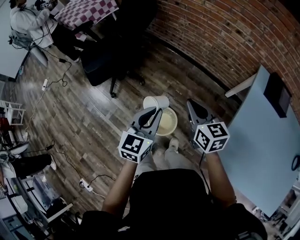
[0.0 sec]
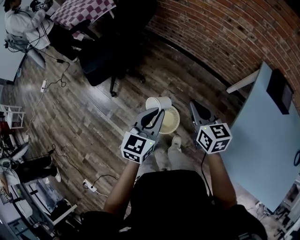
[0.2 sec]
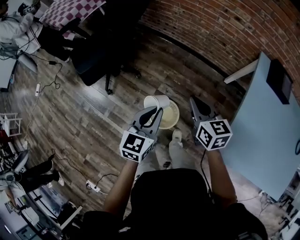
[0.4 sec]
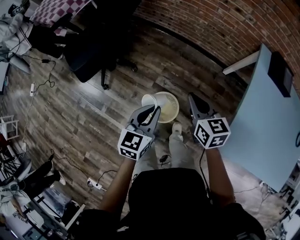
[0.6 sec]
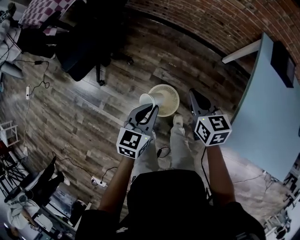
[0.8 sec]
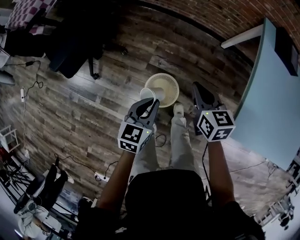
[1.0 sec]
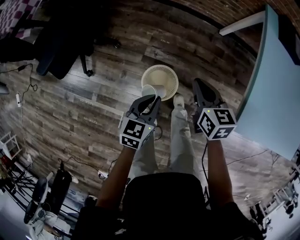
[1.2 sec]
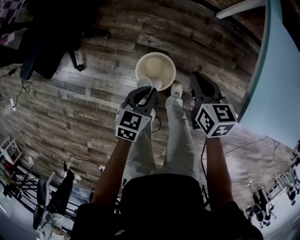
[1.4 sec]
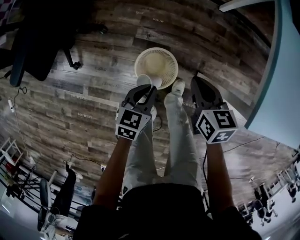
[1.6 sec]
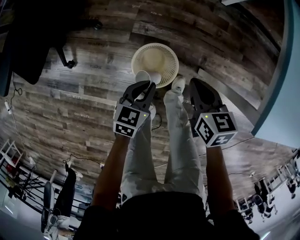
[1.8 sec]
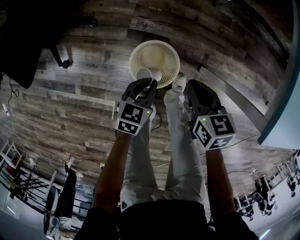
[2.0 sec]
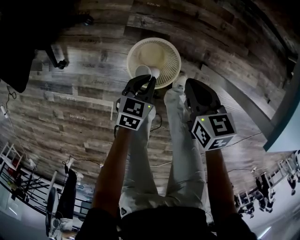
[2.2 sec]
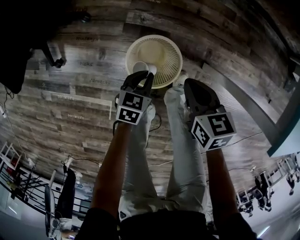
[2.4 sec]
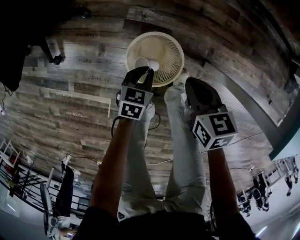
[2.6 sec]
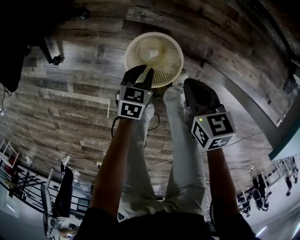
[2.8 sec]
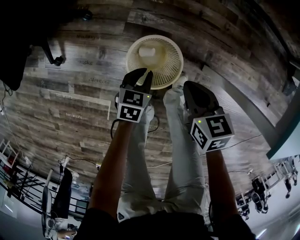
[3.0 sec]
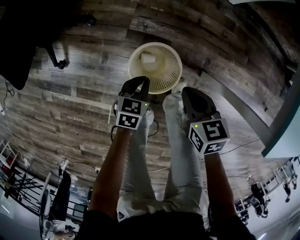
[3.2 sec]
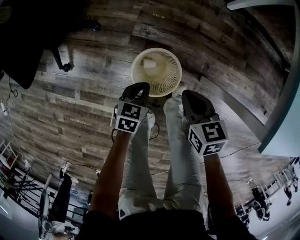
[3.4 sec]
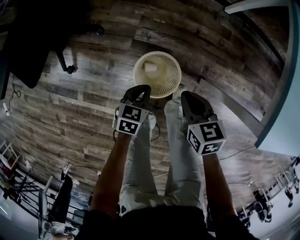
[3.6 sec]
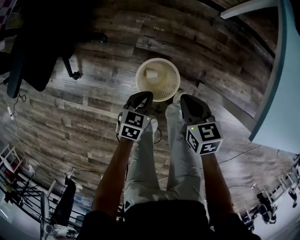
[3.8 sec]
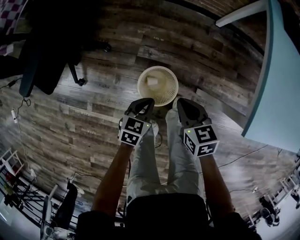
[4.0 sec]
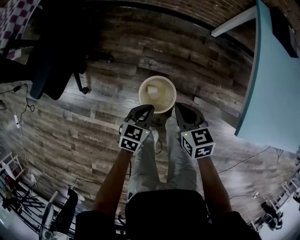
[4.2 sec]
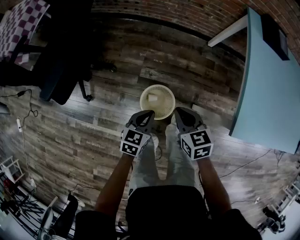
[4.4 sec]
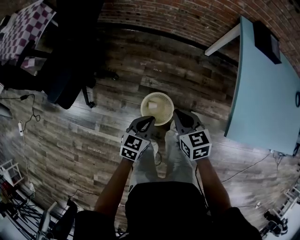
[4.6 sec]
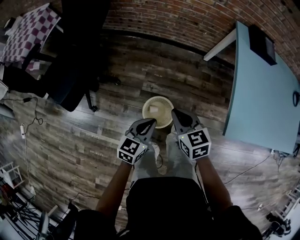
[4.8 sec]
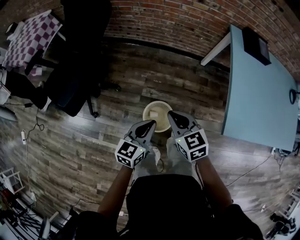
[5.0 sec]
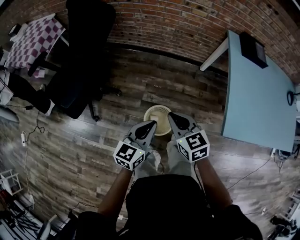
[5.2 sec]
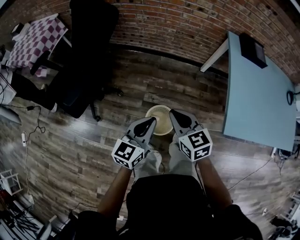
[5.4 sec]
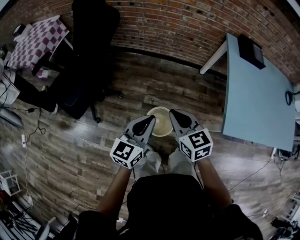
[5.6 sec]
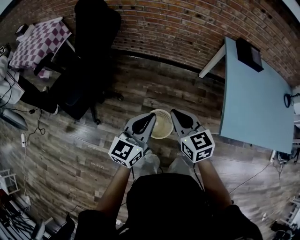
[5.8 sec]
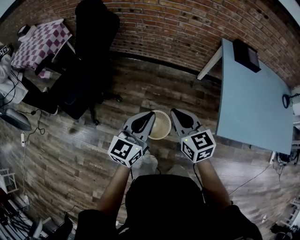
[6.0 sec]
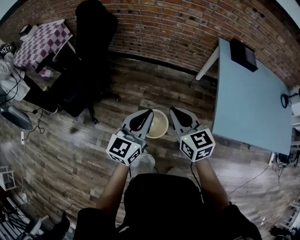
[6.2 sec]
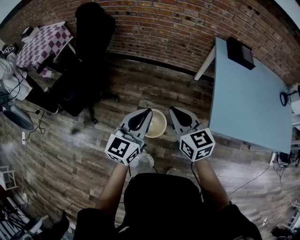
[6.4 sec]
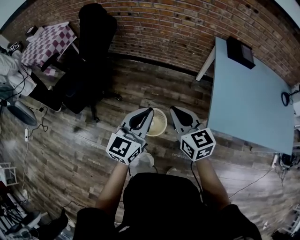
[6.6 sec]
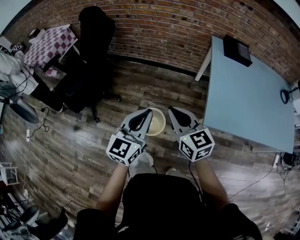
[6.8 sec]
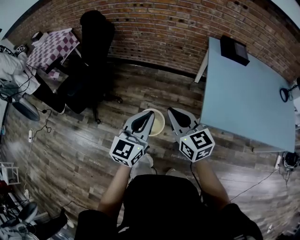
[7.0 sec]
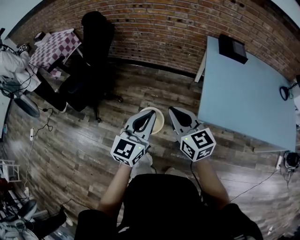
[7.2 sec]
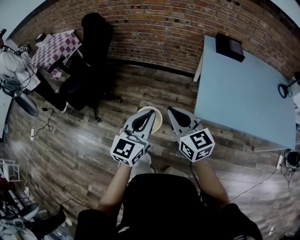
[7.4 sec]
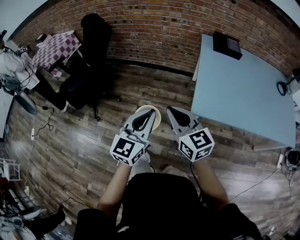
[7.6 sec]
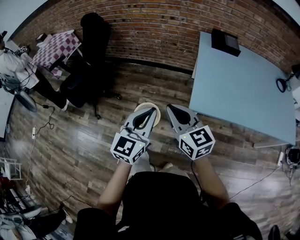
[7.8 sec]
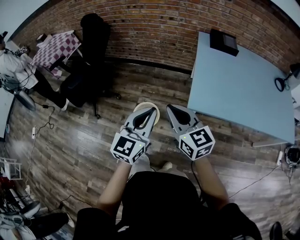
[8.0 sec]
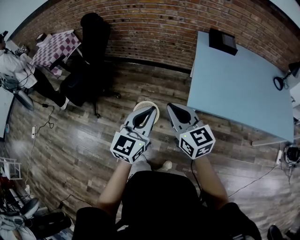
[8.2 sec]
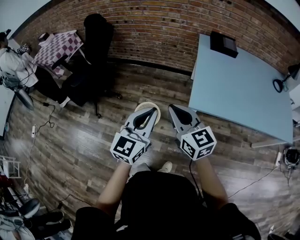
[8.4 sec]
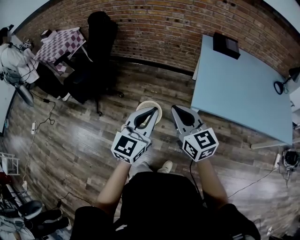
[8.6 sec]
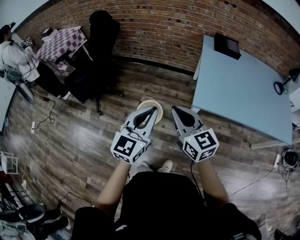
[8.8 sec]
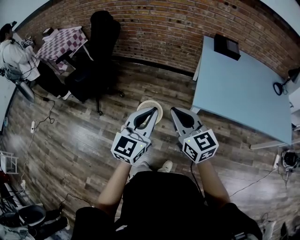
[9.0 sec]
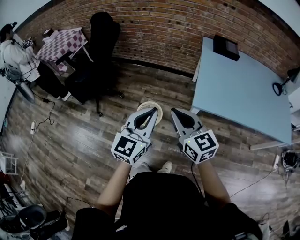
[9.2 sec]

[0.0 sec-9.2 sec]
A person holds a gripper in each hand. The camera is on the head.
0.0 sec to 1.6 sec: Both grippers move downward, approximately 35 cm. The left gripper swivels approximately 40 degrees; the right gripper turns by some 40 degrees.
1.6 sec to 3.0 sec: Both grippers travel together downward, about 20 cm.
3.0 sec to 4.6 sec: The grippers both shift upward by approximately 35 cm.
4.6 sec to 6.2 sec: The two grippers go some 25 cm upward. The left gripper points its fingers some 30 degrees further upward; the right gripper turns by some 20 degrees.
6.2 sec to 7.6 sec: The left gripper travels to the right and backward by approximately 25 cm, while the right gripper travels backward and to the right by approximately 20 cm.
7.6 sec to 9.2 sec: The grippers both shift backward by about 10 cm.

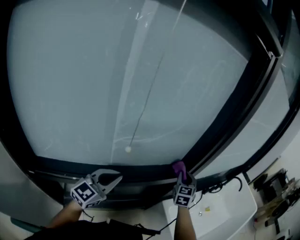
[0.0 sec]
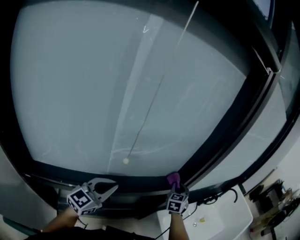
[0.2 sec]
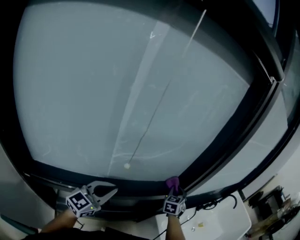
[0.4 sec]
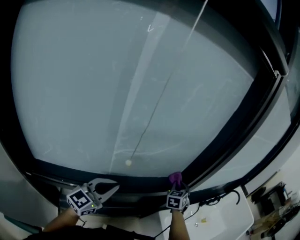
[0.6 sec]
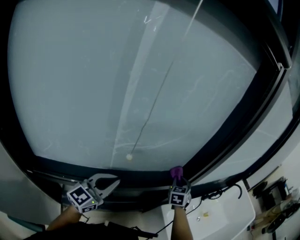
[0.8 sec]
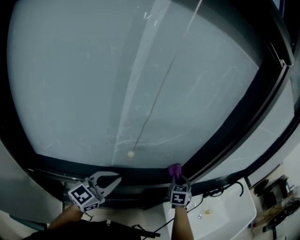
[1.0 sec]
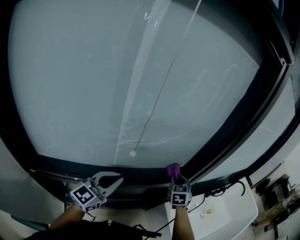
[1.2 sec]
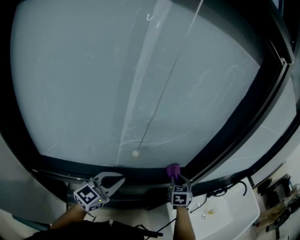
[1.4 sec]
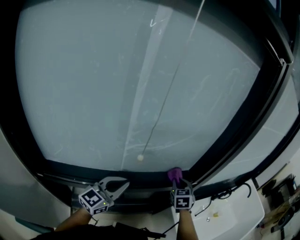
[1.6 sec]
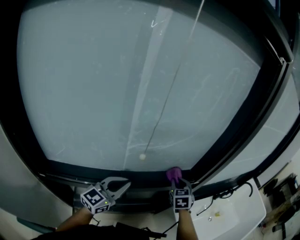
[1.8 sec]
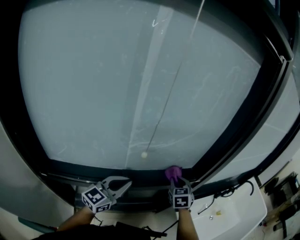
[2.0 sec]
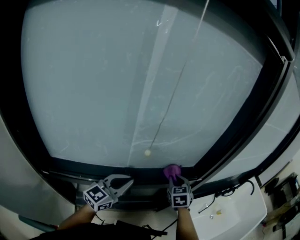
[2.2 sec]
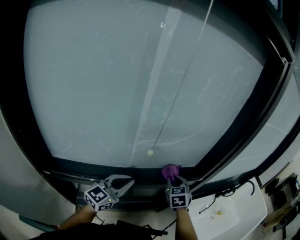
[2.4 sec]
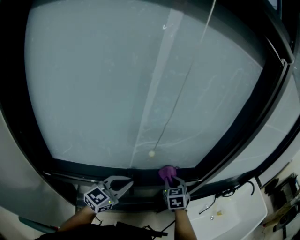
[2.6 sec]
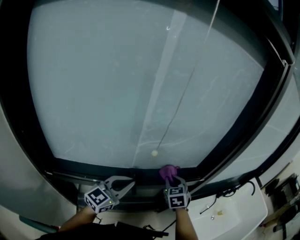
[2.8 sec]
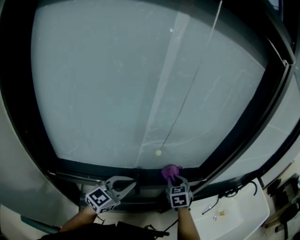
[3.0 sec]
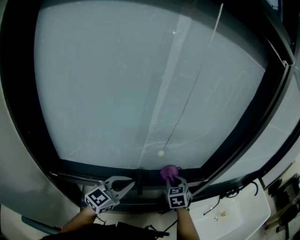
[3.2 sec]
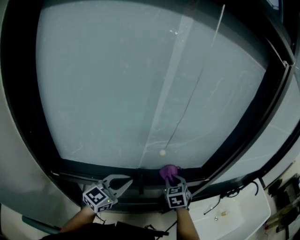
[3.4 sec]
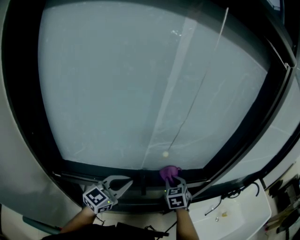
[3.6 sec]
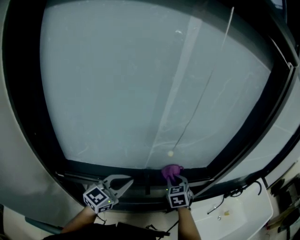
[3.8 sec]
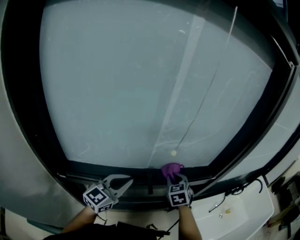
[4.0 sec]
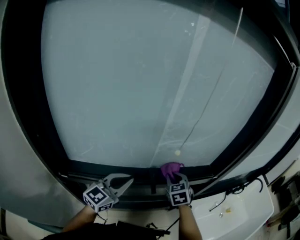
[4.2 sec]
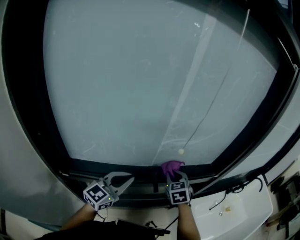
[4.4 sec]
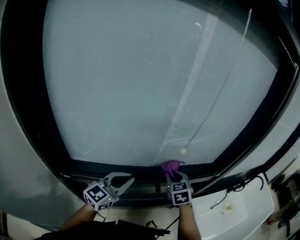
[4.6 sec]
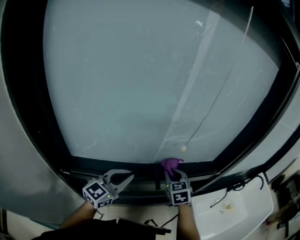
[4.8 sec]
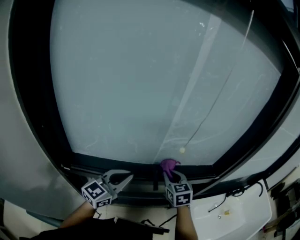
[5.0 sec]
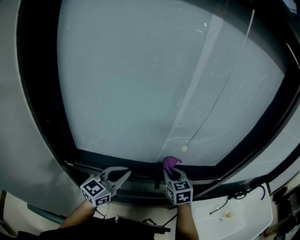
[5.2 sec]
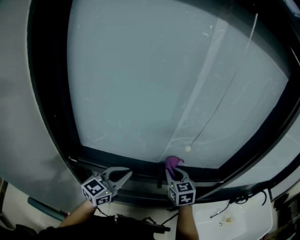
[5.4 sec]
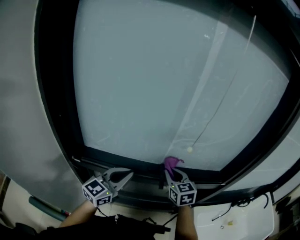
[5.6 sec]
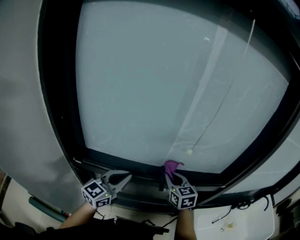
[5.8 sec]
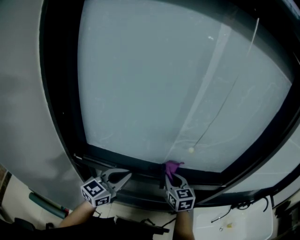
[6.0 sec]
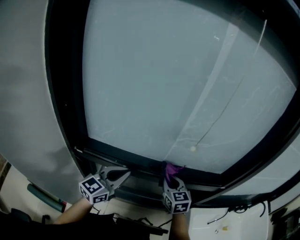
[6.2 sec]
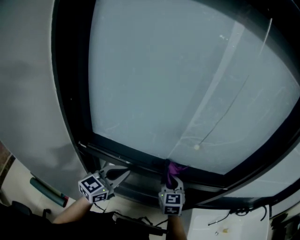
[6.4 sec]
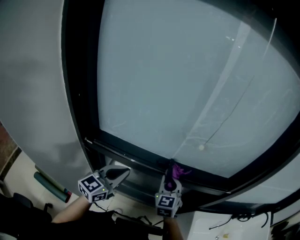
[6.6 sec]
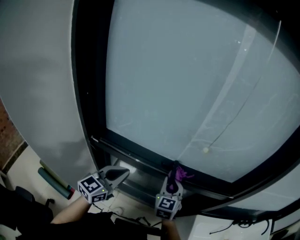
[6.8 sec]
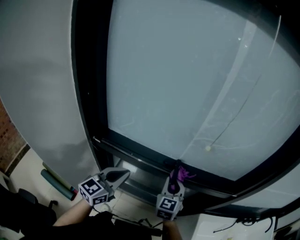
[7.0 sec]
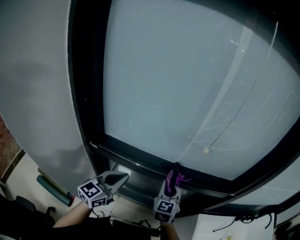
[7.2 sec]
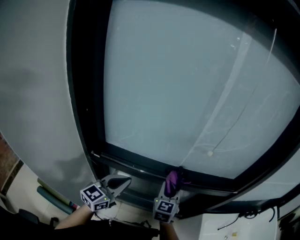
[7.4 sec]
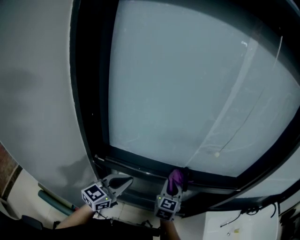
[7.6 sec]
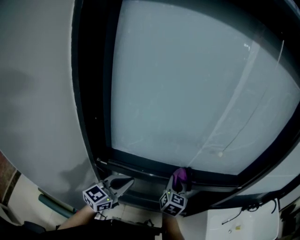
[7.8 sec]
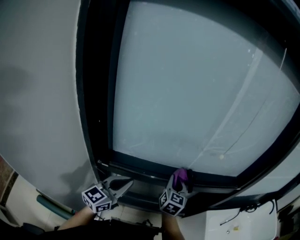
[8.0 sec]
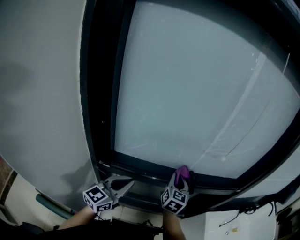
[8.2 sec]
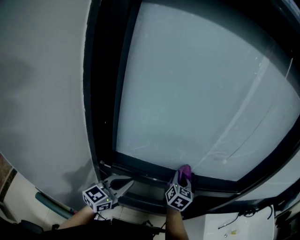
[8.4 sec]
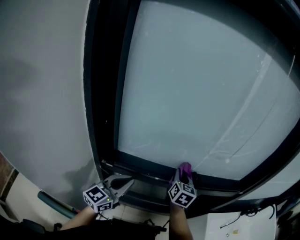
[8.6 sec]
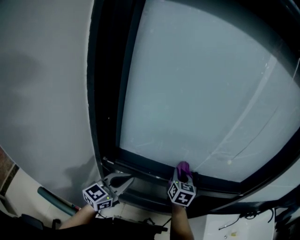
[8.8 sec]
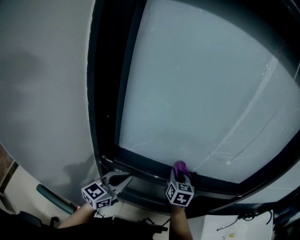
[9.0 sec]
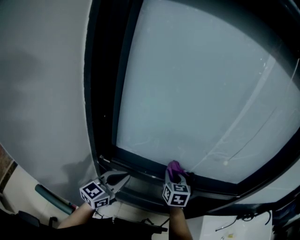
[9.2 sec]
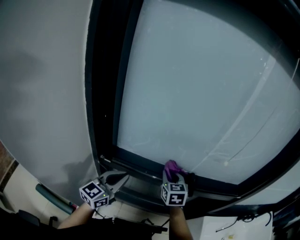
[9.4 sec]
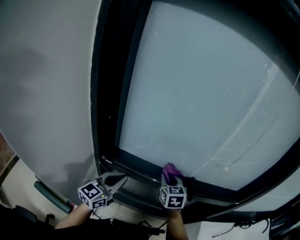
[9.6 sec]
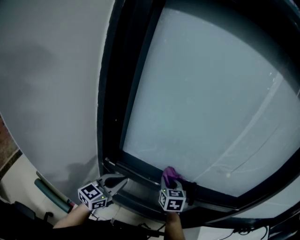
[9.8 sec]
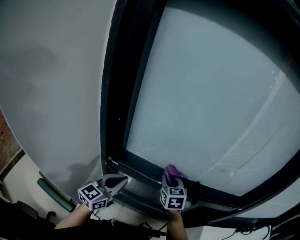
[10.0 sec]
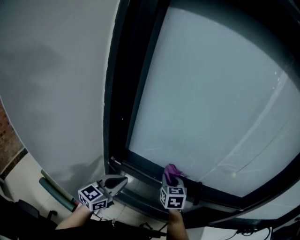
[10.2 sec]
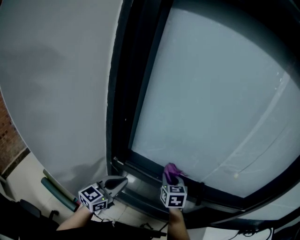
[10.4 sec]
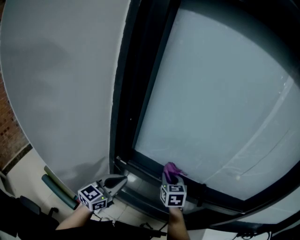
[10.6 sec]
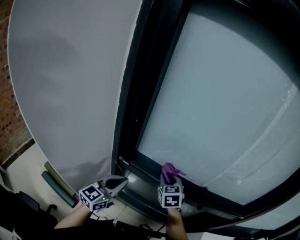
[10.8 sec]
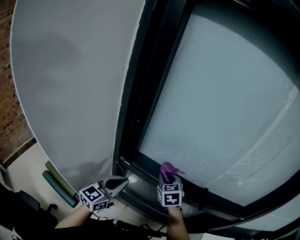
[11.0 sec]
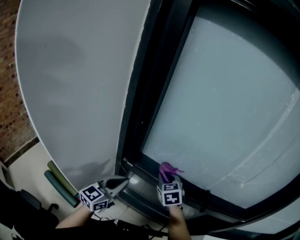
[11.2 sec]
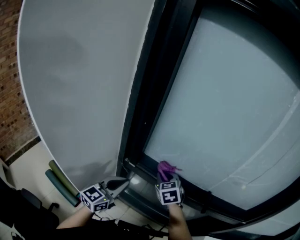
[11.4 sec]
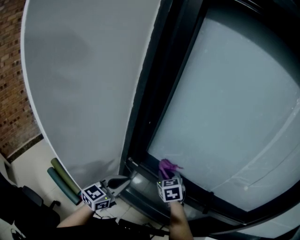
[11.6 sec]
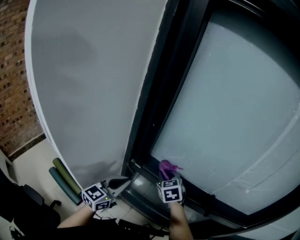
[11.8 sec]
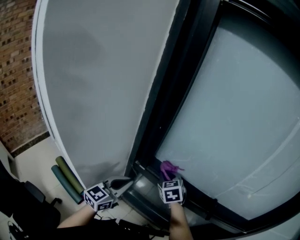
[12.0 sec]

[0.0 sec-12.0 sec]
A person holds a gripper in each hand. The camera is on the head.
0.0 sec to 1.6 sec: The right gripper is displaced to the left, downward and backward by approximately 10 cm, and changes its angle by roughly 20 degrees.
1.6 sec to 3.0 sec: The right gripper goes roughly 10 cm to the left and backward.
3.0 sec to 4.4 sec: Both grippers travel together to the left, roughly 10 cm.
4.4 sec to 6.0 sec: The right gripper is displaced to the left and backward by approximately 5 cm, and turns by roughly 30 degrees. Meanwhile the left gripper ends up approximately 5 cm from where it was.
6.0 sec to 7.6 sec: The left gripper moves to the left and backward, roughly 10 cm, while the right gripper moves to the left, roughly 5 cm, and swivels about 20 degrees.
7.6 sec to 9.0 sec: The grippers both shift to the left by about 5 cm.
9.0 sec to 10.4 sec: The left gripper ends up roughly 5 cm from where it was. Meanwhile the right gripper shifts about 10 cm to the left.
10.4 sec to 12.0 sec: The left gripper shifts about 5 cm to the left. Meanwhile the right gripper travels to the left by approximately 15 cm, and rotates about 20 degrees.

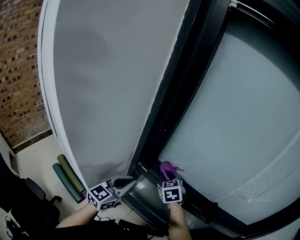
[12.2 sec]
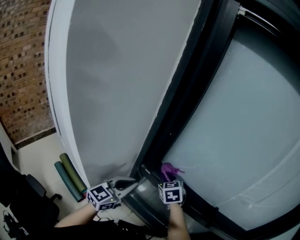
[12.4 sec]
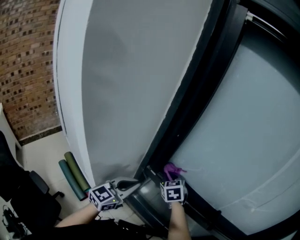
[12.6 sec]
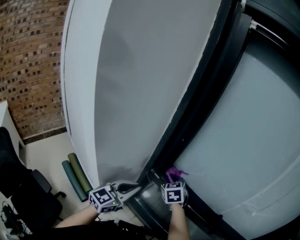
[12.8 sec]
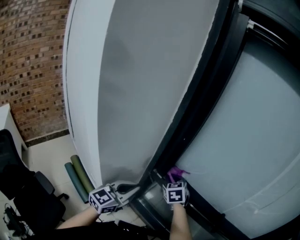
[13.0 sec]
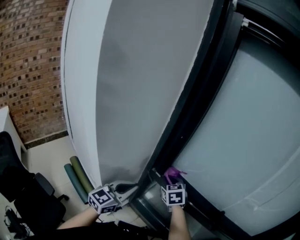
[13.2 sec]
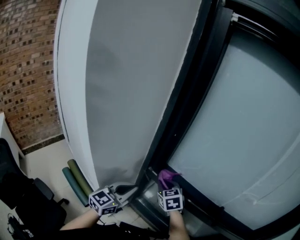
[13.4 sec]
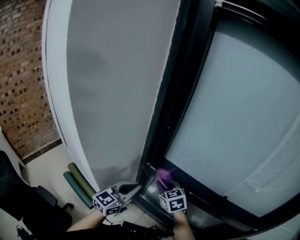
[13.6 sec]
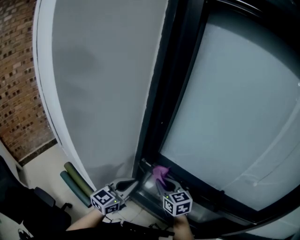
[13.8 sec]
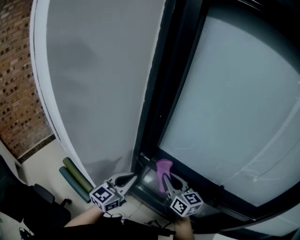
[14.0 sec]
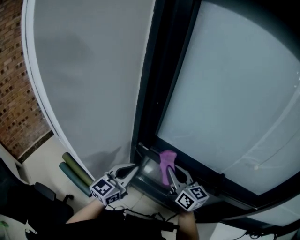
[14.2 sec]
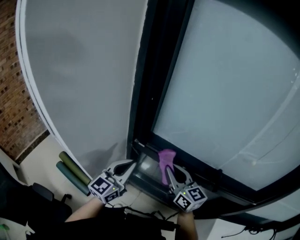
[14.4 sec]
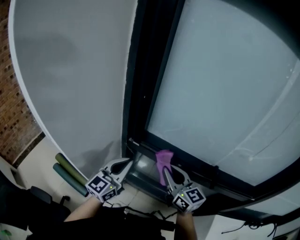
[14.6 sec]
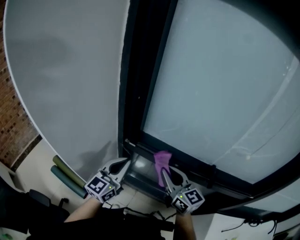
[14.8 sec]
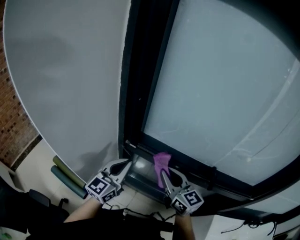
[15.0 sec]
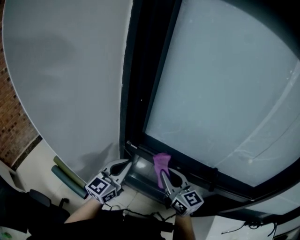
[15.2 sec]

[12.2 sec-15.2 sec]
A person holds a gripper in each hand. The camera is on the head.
12.2 sec to 13.8 sec: The right gripper travels backward by roughly 10 cm, and rotates approximately 20 degrees.
13.8 sec to 15.2 sec: The right gripper goes about 5 cm to the right, and swivels some 20 degrees.
